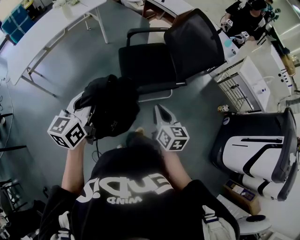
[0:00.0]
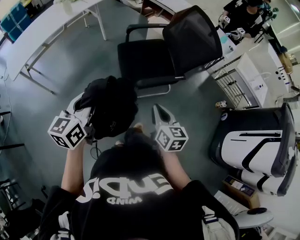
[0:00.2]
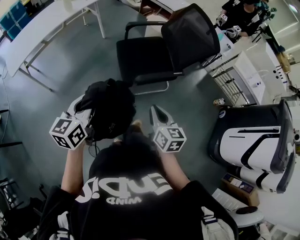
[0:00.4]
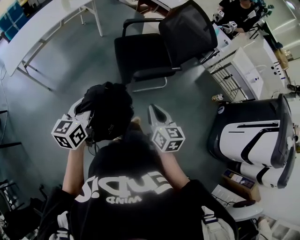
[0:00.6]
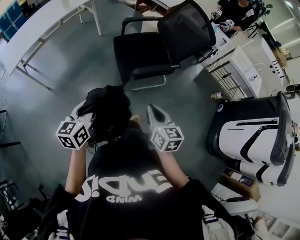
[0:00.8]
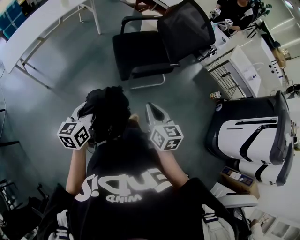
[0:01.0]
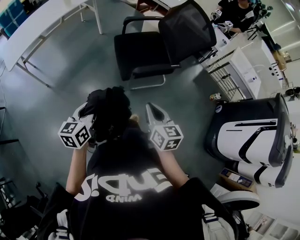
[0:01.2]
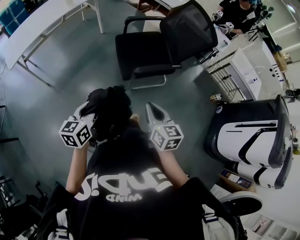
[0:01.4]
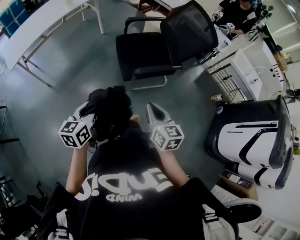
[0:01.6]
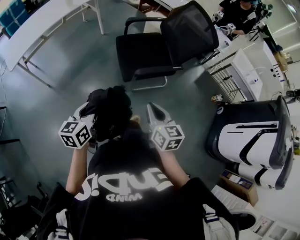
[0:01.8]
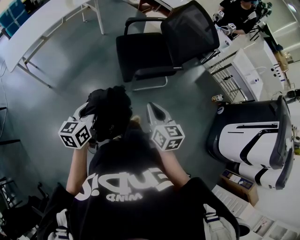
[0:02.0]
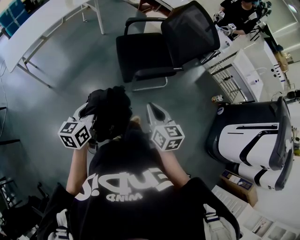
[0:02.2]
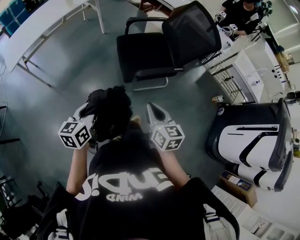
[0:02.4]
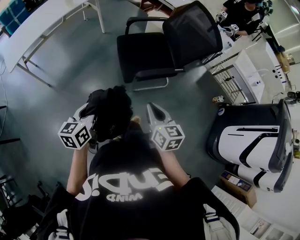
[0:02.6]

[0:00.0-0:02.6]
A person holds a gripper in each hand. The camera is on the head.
0:00.0 to 0:01.2: The left gripper moves backward and downward, roughly 20 cm. The right gripper goes some 15 cm backward.
0:01.2 to 0:02.6: There are only small adjustments of the grippers.

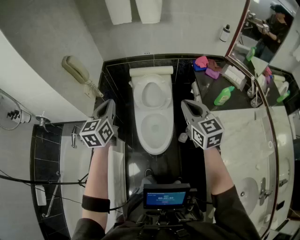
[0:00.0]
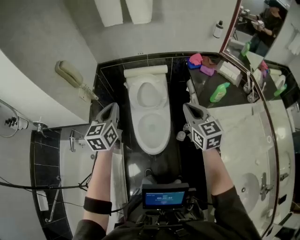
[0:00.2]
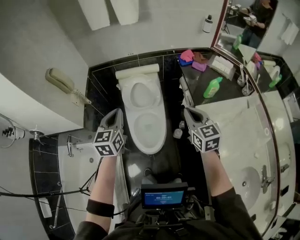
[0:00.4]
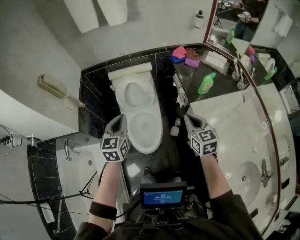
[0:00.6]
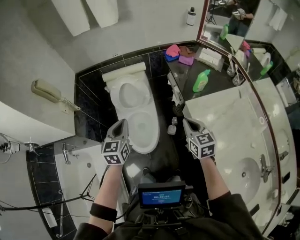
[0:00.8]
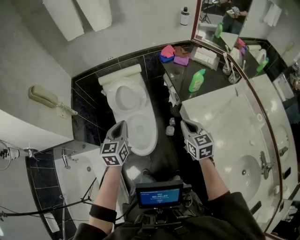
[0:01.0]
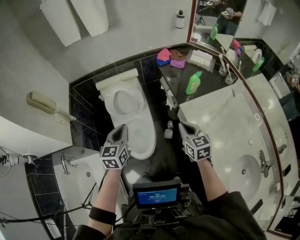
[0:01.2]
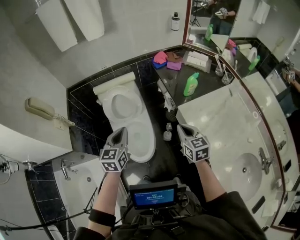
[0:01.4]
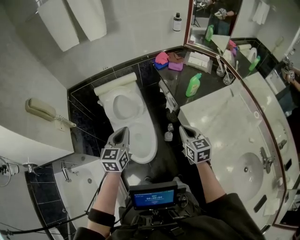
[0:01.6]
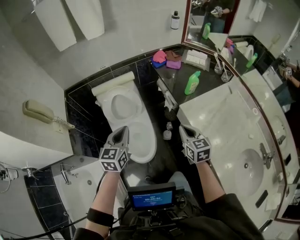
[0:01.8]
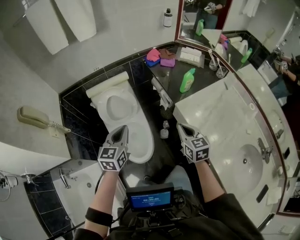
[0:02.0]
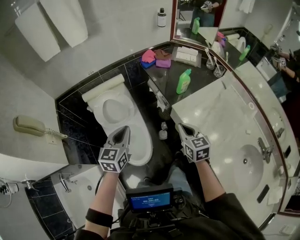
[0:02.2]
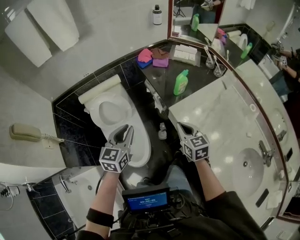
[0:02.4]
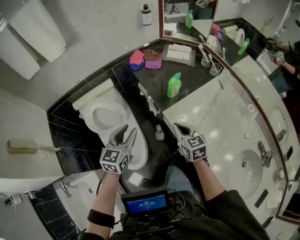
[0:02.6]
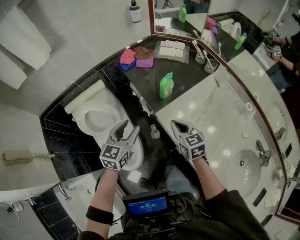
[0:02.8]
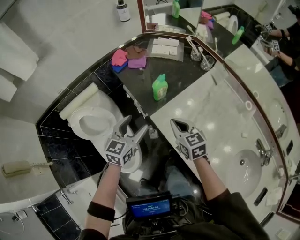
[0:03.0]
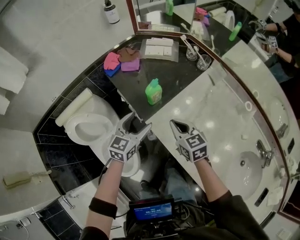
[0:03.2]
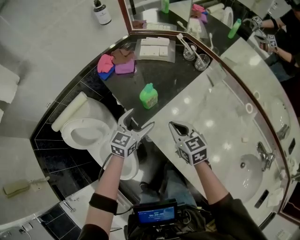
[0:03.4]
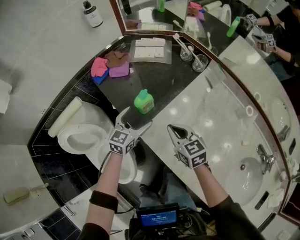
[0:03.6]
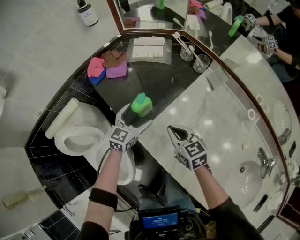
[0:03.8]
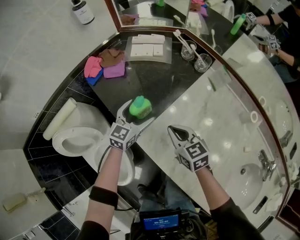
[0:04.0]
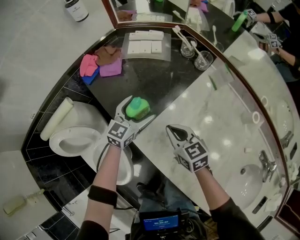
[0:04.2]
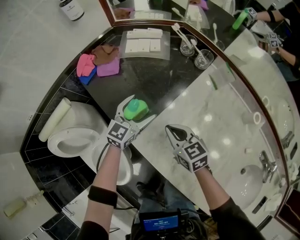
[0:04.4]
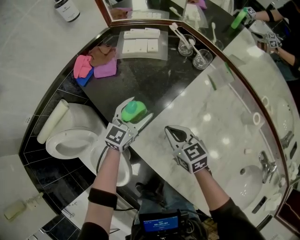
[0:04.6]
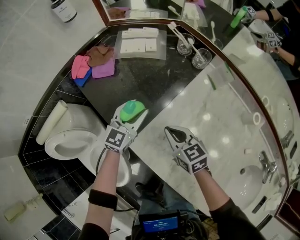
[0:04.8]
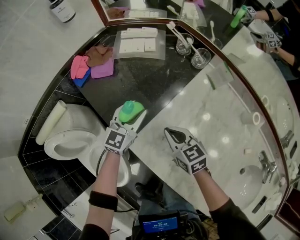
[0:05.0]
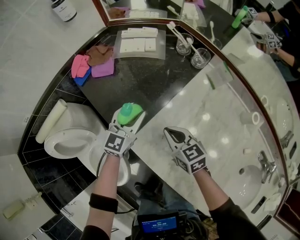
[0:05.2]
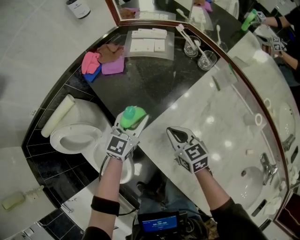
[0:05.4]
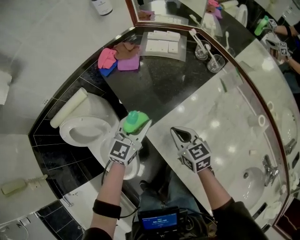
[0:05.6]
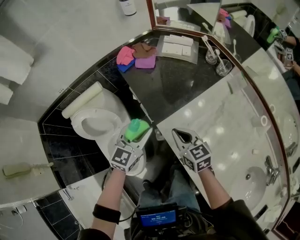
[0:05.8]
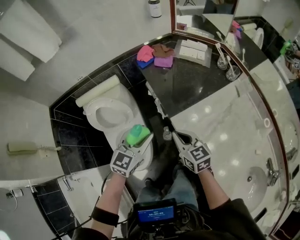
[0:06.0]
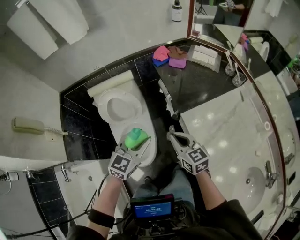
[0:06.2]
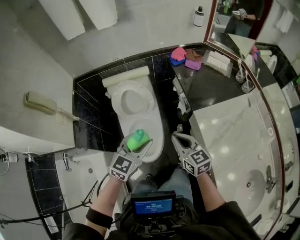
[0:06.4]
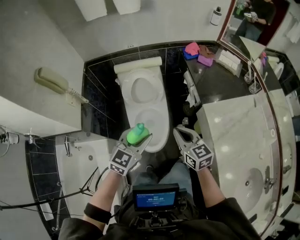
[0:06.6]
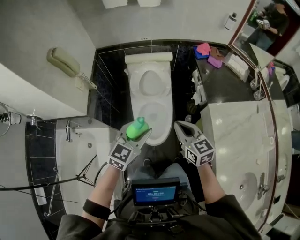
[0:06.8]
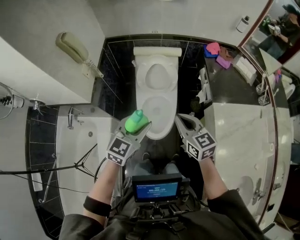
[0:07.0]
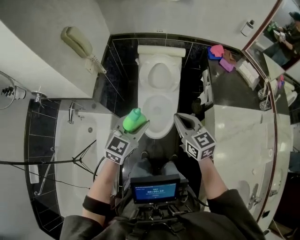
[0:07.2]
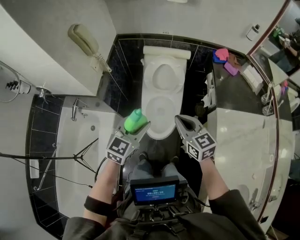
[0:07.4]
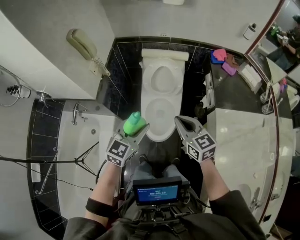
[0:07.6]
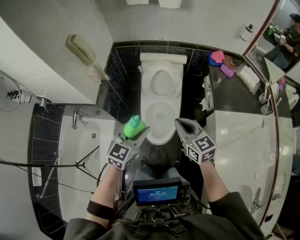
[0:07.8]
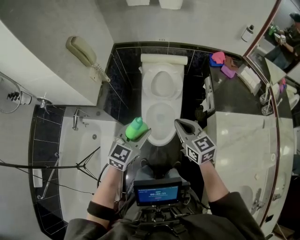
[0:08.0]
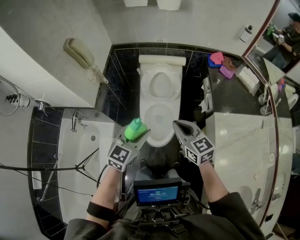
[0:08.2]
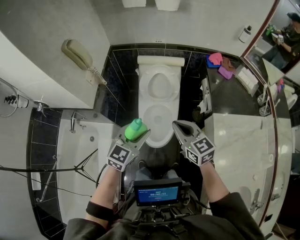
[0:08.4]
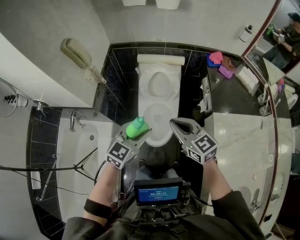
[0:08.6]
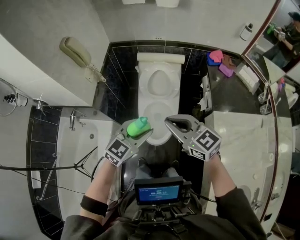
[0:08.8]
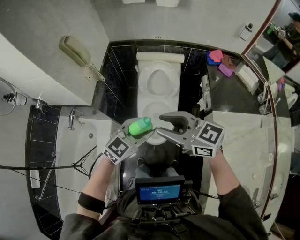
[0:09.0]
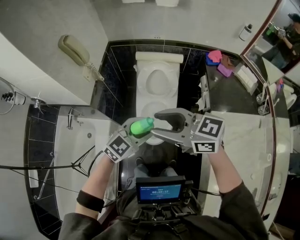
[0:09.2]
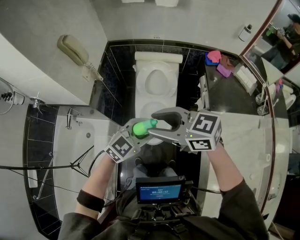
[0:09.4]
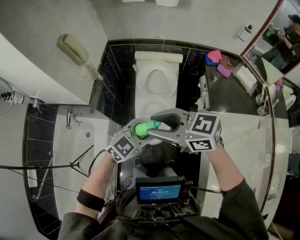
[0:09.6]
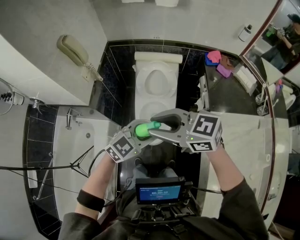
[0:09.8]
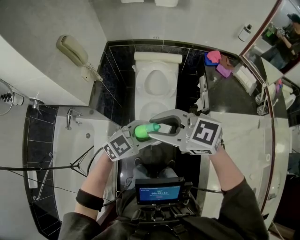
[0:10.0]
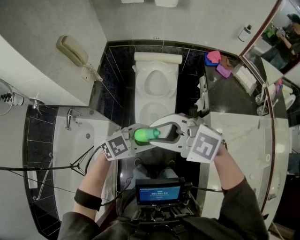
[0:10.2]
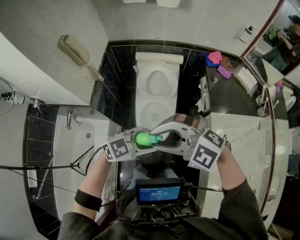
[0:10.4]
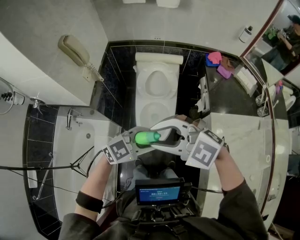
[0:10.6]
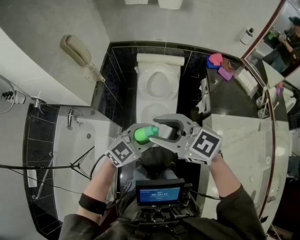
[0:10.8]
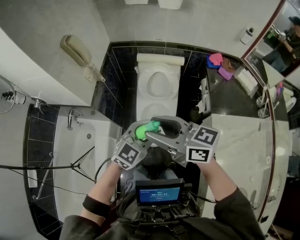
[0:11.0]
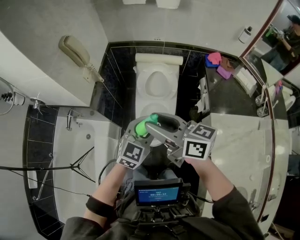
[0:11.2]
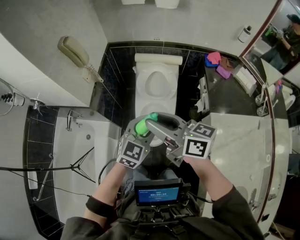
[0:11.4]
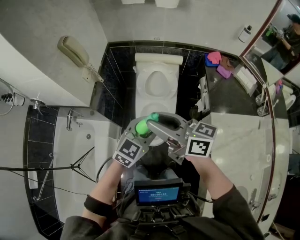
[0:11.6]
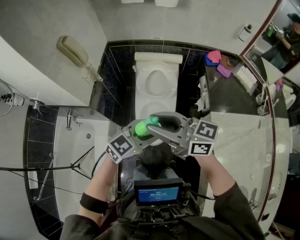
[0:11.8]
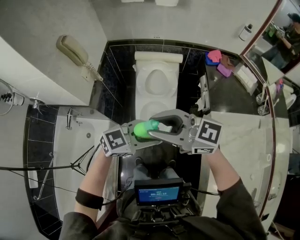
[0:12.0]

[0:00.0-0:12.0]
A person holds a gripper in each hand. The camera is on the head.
0:00.0 to 0:01.6: The left gripper travels to the right and downward by some 20 cm, and turns by approximately 20 degrees, while the right gripper shifts roughly 20 cm downward and to the right, and changes its angle by about 30 degrees.
0:01.6 to 0:03.0: The left gripper heads to the right and forward, covering about 35 cm, rotates roughly 30 degrees, and opens. Meanwhile the right gripper shifts some 20 cm forward and to the right.
0:03.0 to 0:04.4: The right gripper shifts roughly 15 cm forward, downward and to the right. The left gripper is displaced forward, to the right and downward by some 30 cm.
0:04.4 to 0:06.0: The right gripper shifts approximately 25 cm backward, to the left and upward. The left gripper heads backward, to the left and upward, covering roughly 35 cm, swivels about 20 degrees, and closes.
0:06.0 to 0:07.6: The right gripper changes place by approximately 35 cm, and rotates roughly 30 degrees. Meanwhile the left gripper shifts by some 35 cm, and swivels about 30 degrees.
0:07.6 to 0:09.0: The right gripper goes approximately 10 cm upward and to the left, rotates some 30 degrees, and opens its fingers. Meanwhile the left gripper moves about 5 cm, and turns by about 20 degrees.
0:09.0 to 0:10.4: The left gripper changes place by about 5 cm, and swivels some 30 degrees, while the right gripper ends up roughly 5 cm from where it was, and rolls counterclockwise, seen from behind, by approximately 50 degrees.
0:10.4 to 0:12.0: The right gripper shifts by approximately 5 cm, and changes its angle by about 50 degrees.

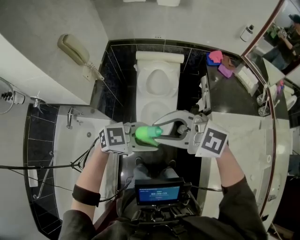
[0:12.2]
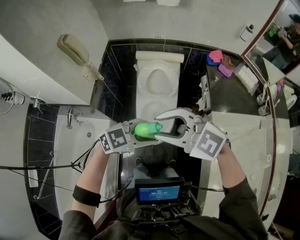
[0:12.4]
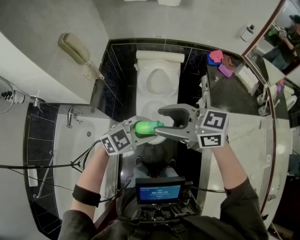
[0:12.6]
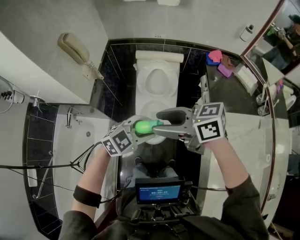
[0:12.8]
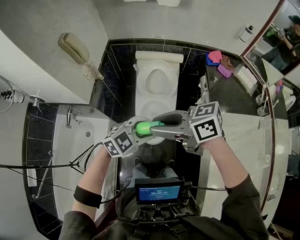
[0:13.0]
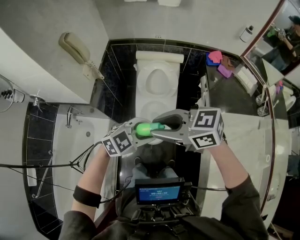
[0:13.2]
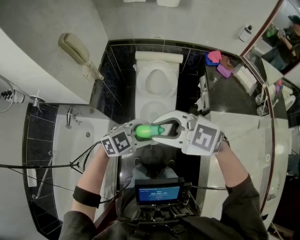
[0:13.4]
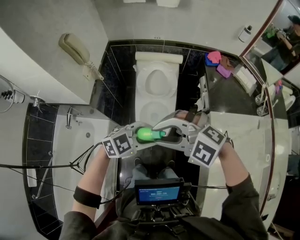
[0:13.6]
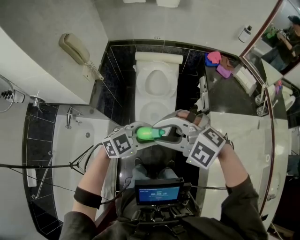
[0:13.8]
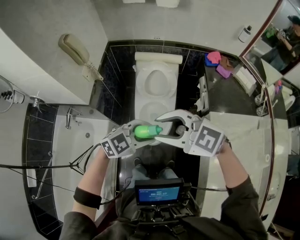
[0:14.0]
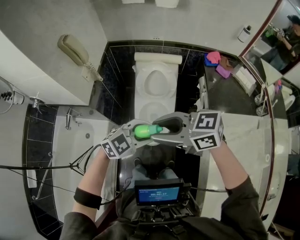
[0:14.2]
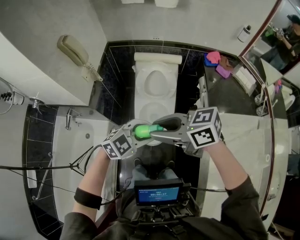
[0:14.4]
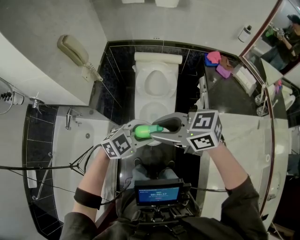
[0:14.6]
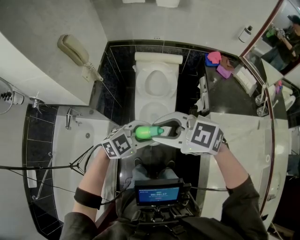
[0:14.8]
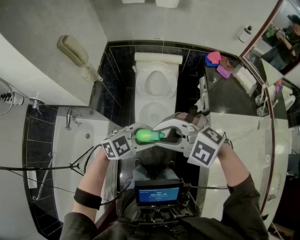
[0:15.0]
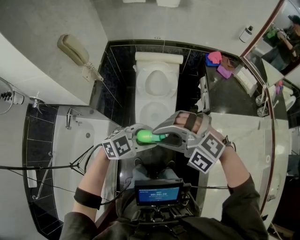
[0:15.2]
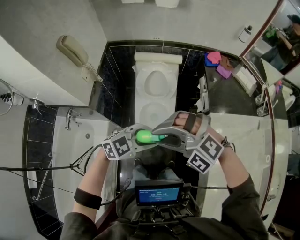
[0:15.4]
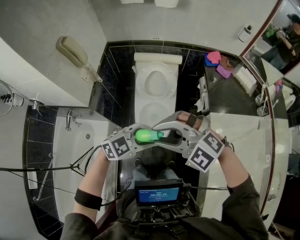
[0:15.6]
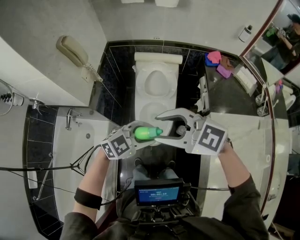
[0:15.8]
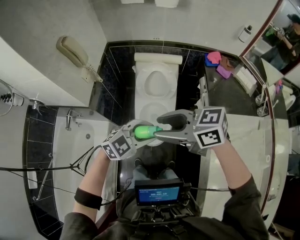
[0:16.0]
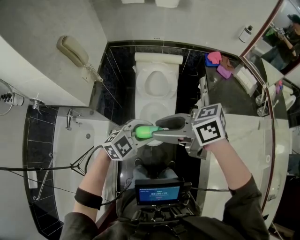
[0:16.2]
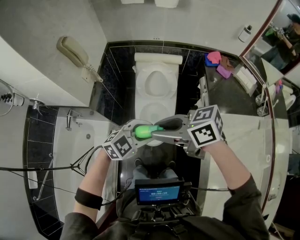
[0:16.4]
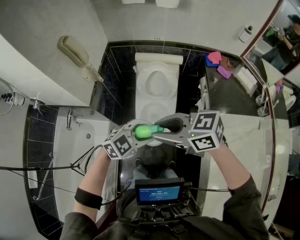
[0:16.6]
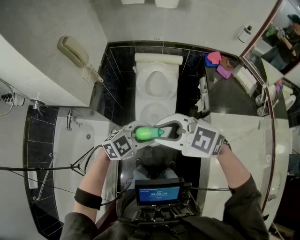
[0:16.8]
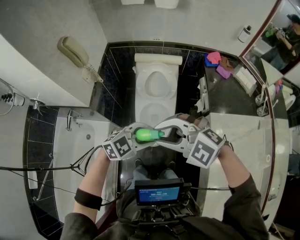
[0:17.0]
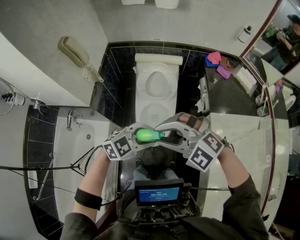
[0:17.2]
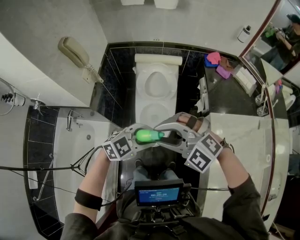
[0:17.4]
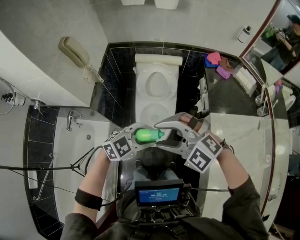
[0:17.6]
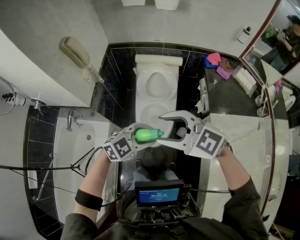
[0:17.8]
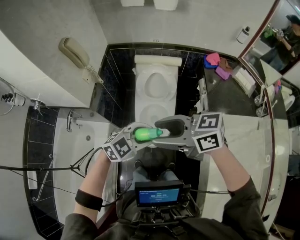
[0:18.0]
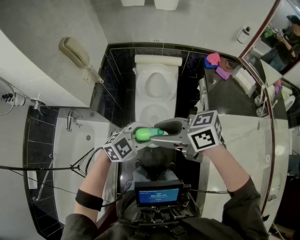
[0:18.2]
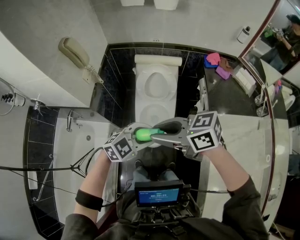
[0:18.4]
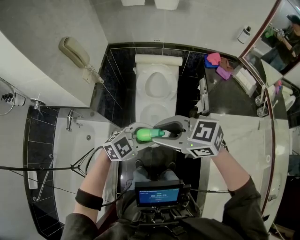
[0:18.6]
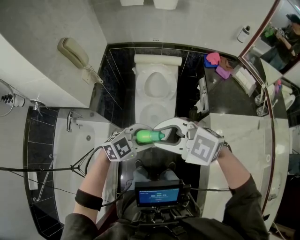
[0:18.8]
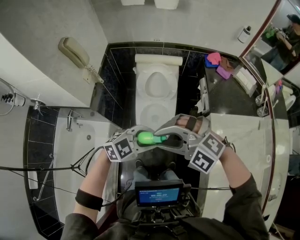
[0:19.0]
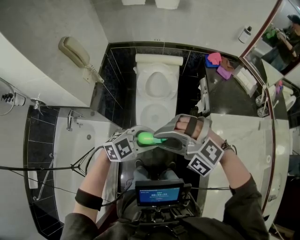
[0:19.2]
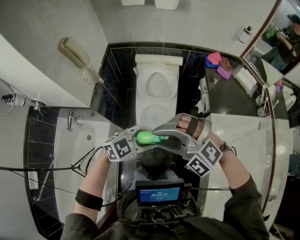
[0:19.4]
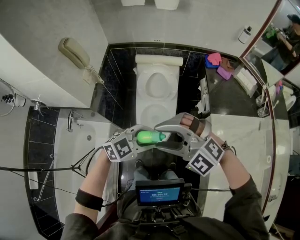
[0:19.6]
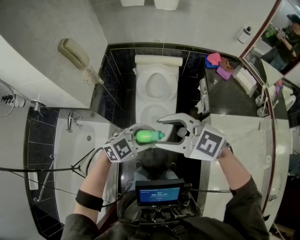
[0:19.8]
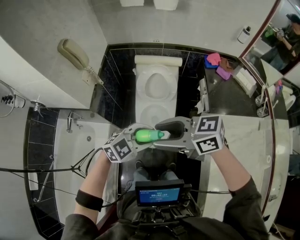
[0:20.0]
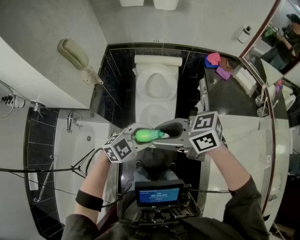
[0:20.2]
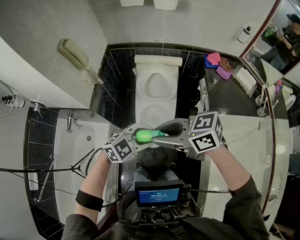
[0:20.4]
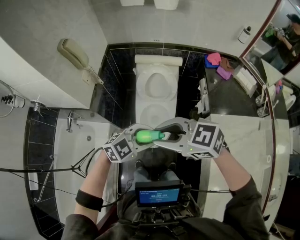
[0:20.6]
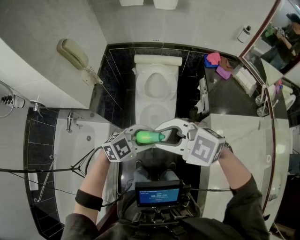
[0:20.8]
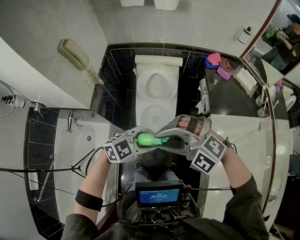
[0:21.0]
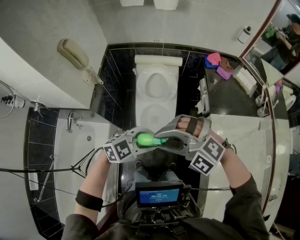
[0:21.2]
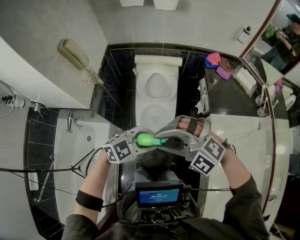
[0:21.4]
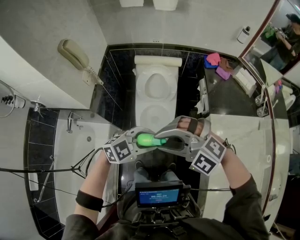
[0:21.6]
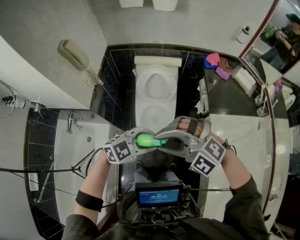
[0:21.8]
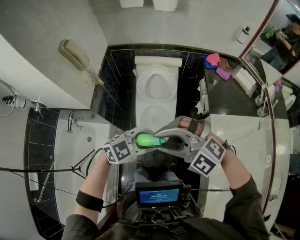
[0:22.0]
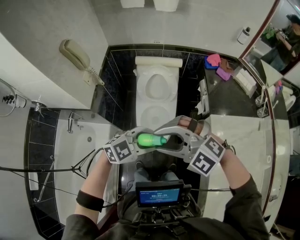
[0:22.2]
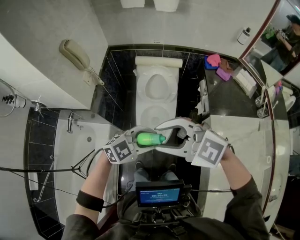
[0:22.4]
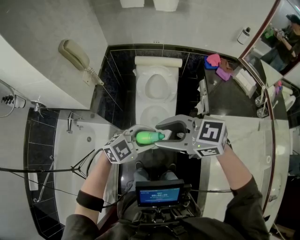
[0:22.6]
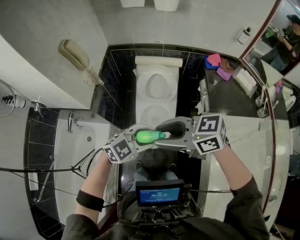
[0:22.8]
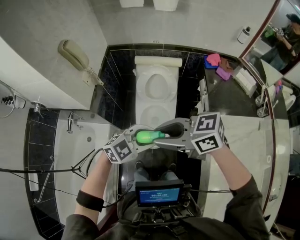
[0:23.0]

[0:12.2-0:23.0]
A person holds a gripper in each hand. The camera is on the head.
0:12.2 to 0:13.8: The right gripper swivels approximately 20 degrees.
0:15.2 to 0:16.8: The right gripper twists roughly 40 degrees clockwise, seen from behind.
0:16.8 to 0:18.4: The right gripper turns by some 40 degrees, and opens, then closes once more.
0:18.4 to 0:20.0: The right gripper opens up.
0:20.0 to 0:21.4: The right gripper twists roughly 70 degrees counterclockwise, seen from behind, and closes.
0:21.4 to 0:23.0: The right gripper twists roughly 70 degrees clockwise, seen from behind.
